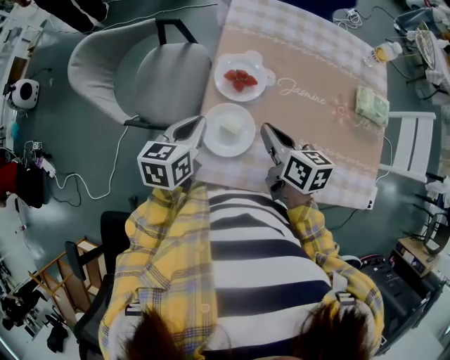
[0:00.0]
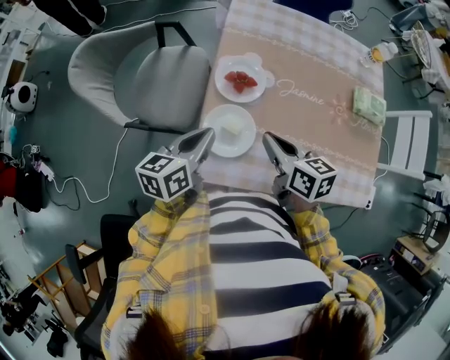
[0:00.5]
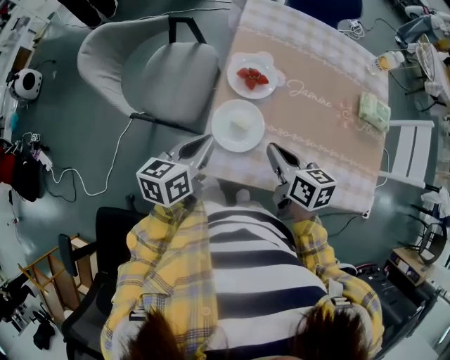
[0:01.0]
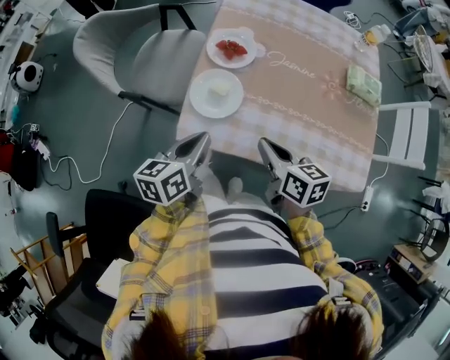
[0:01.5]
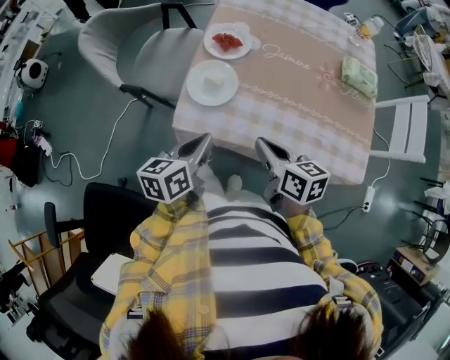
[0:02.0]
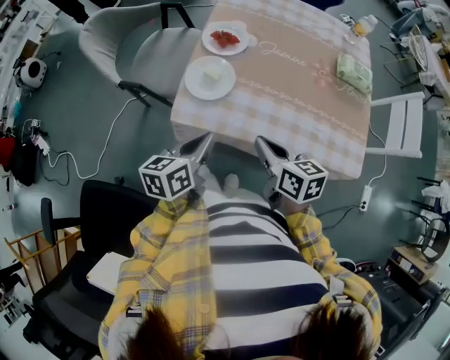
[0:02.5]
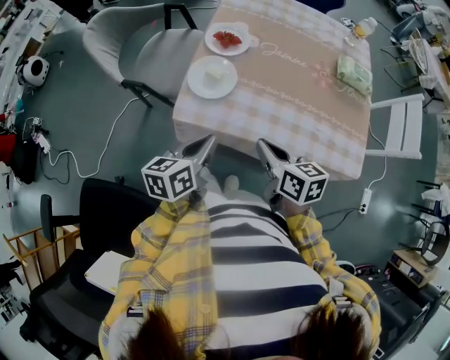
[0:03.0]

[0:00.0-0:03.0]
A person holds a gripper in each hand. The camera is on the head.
0:00.0 to 0:01.5: Both grippers travel together backward, about 15 cm.
0:01.5 to 0:03.0: Both grippers move backward, approximately 5 cm.

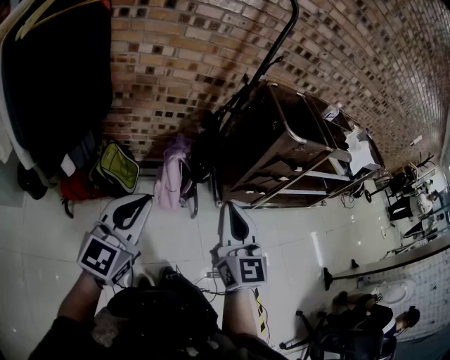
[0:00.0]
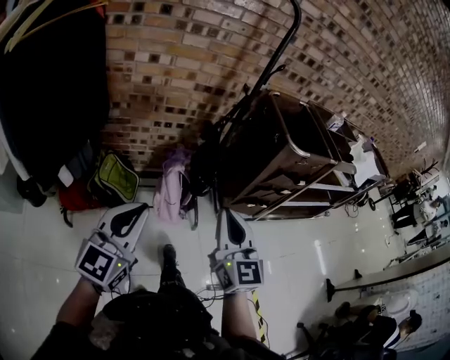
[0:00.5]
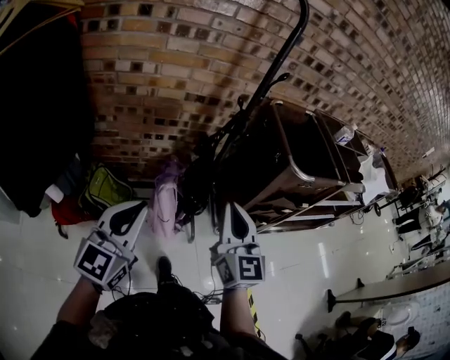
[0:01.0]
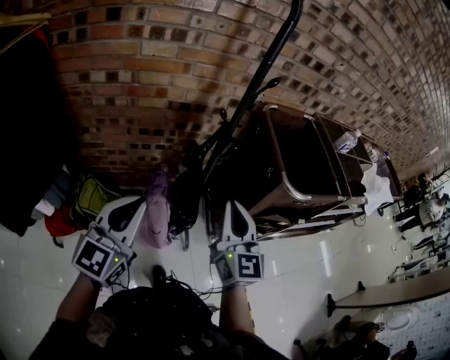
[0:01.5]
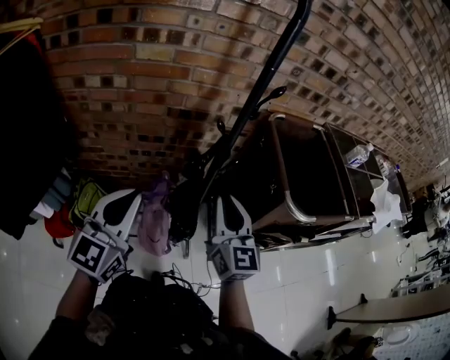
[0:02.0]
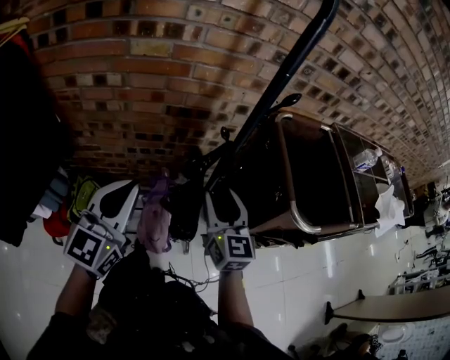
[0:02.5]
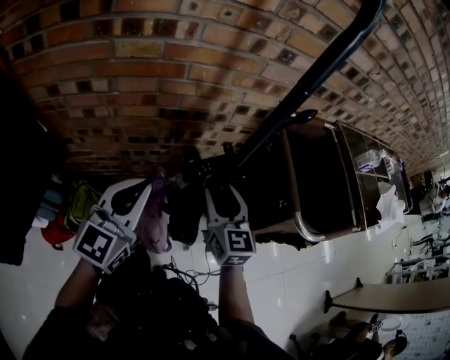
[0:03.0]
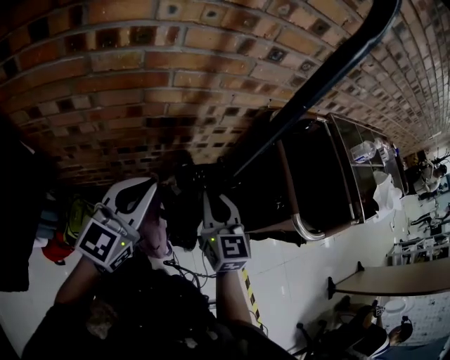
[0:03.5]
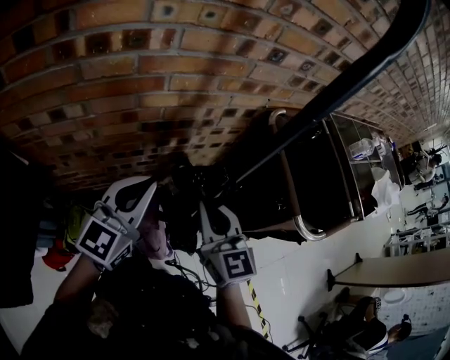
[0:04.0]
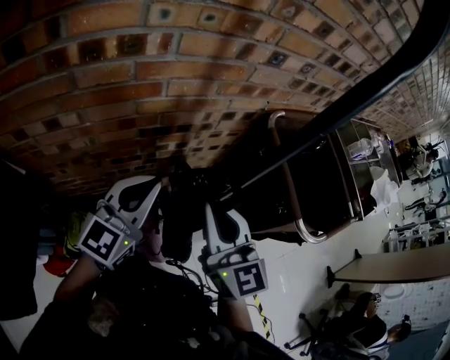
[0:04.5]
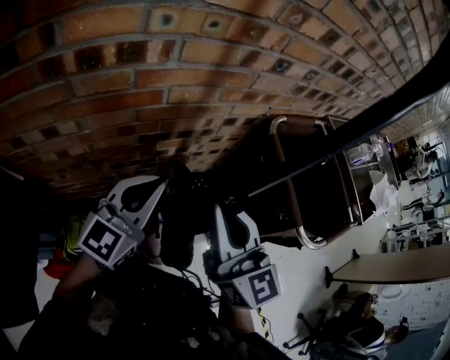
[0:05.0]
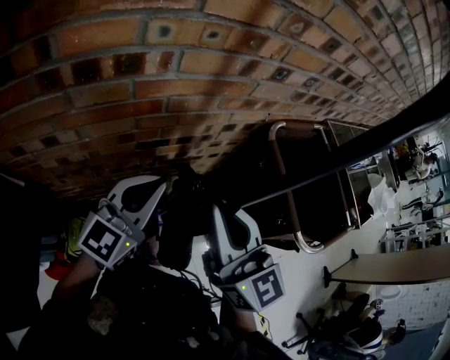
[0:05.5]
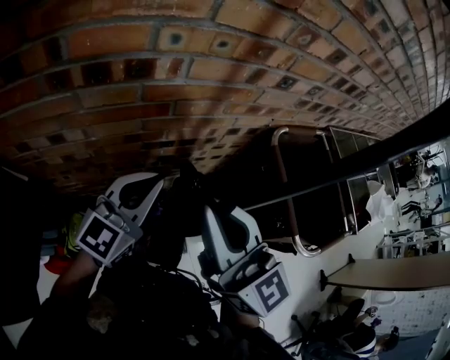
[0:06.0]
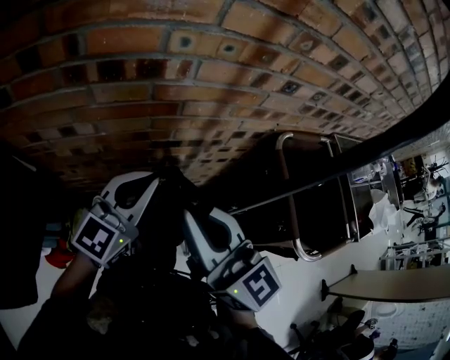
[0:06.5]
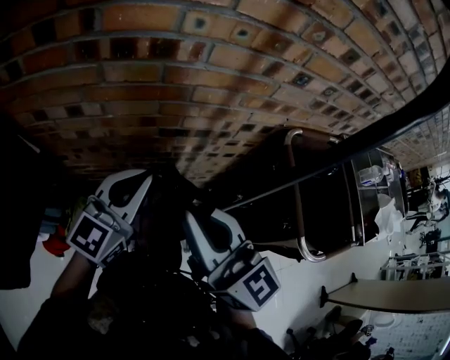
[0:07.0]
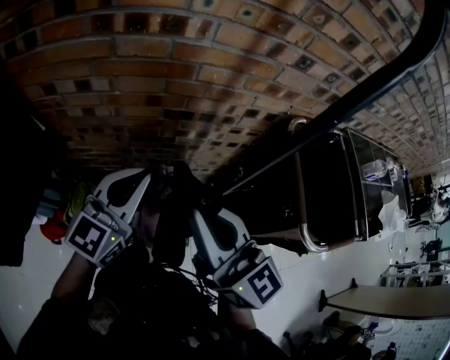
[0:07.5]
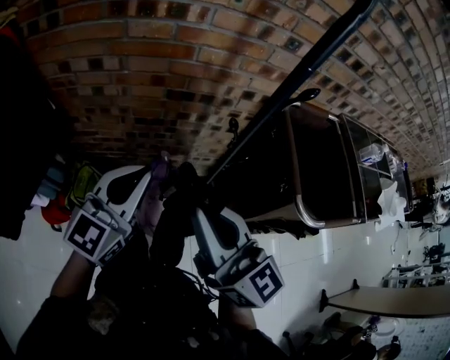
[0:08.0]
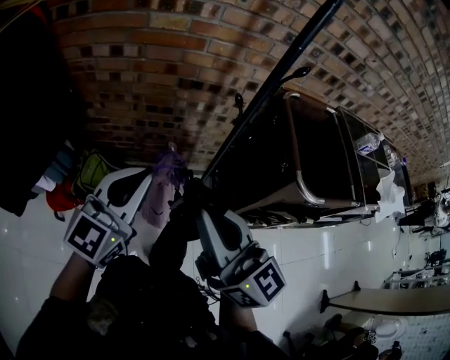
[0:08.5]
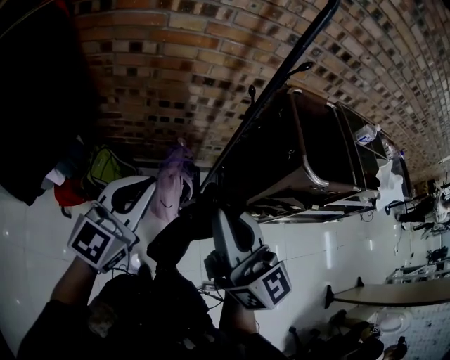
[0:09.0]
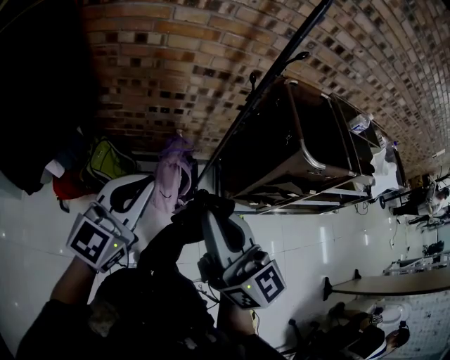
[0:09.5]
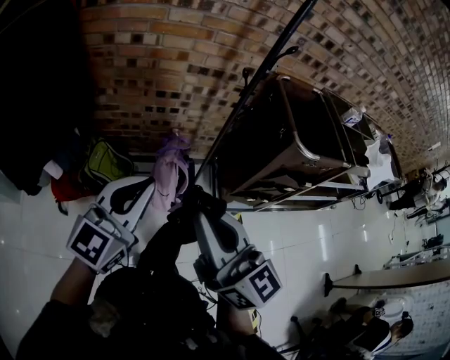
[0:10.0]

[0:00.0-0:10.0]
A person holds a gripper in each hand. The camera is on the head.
0:00.0 to 0:02.0: The pair of grippers is taken forward, about 40 cm.
0:02.0 to 0:04.0: The left gripper travels forward by approximately 20 cm. Meanwhile the right gripper heads forward and to the left, covering approximately 15 cm, and opens, then closes again.
0:04.0 to 0:06.0: The right gripper moves upward, roughly 20 cm, and swivels roughly 20 degrees. Meanwhile the left gripper is displaced forward by about 5 cm.
0:06.0 to 0:08.0: Both grippers move backward, roughly 20 cm.
0:08.0 to 0:10.0: Both grippers travel together backward, some 25 cm.

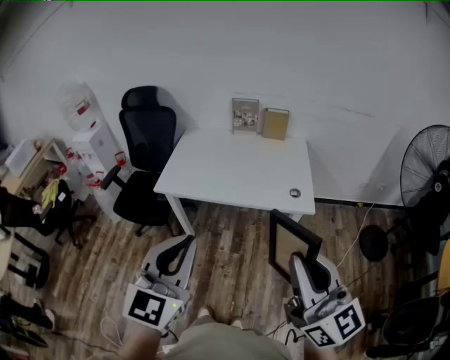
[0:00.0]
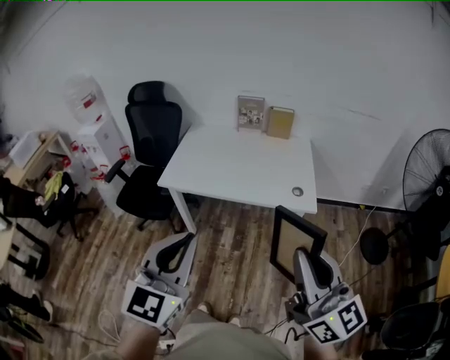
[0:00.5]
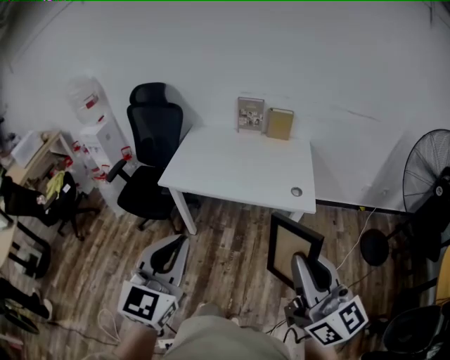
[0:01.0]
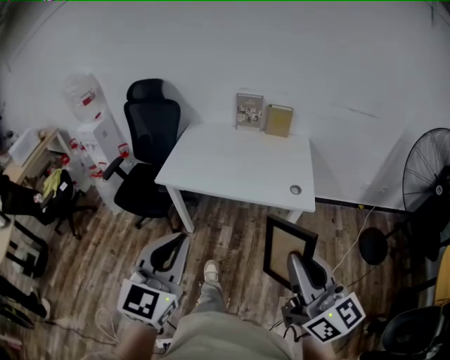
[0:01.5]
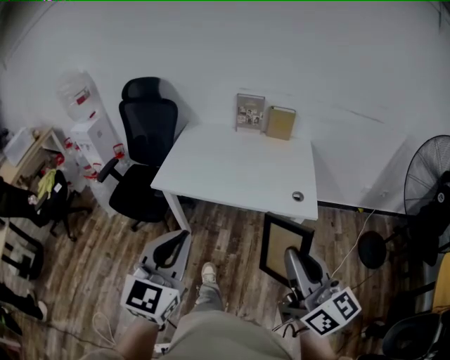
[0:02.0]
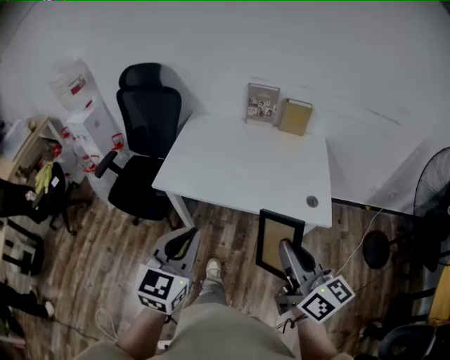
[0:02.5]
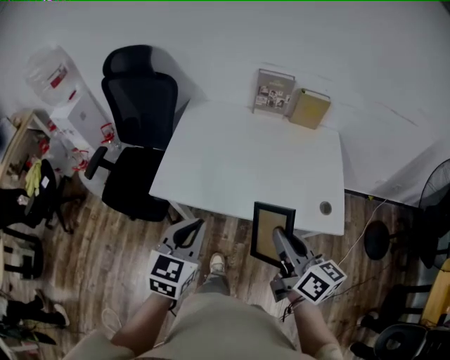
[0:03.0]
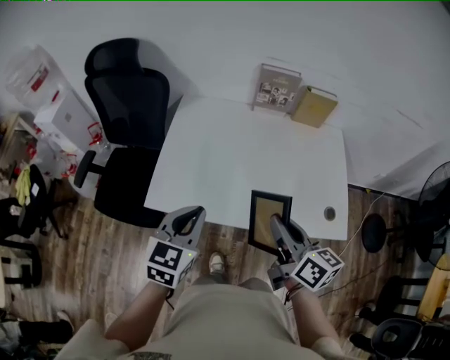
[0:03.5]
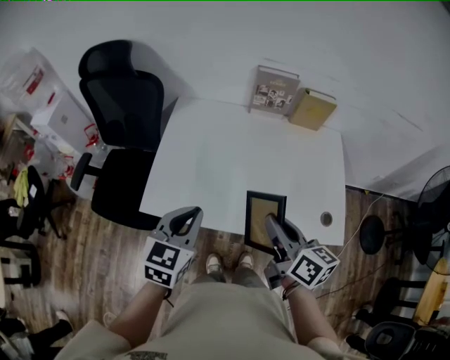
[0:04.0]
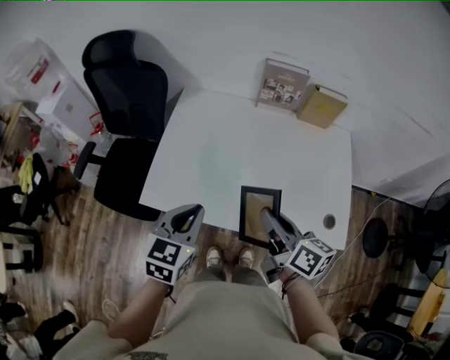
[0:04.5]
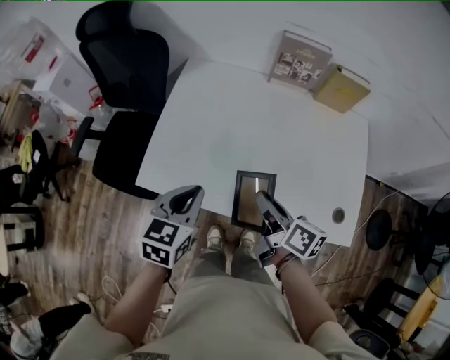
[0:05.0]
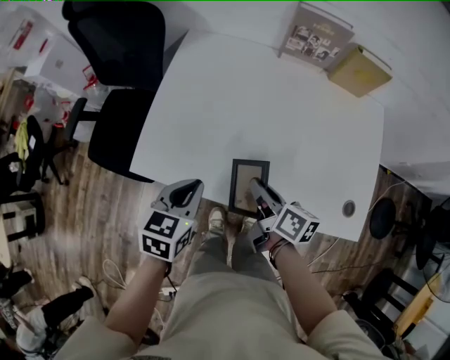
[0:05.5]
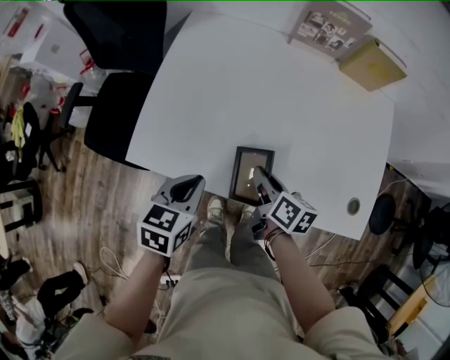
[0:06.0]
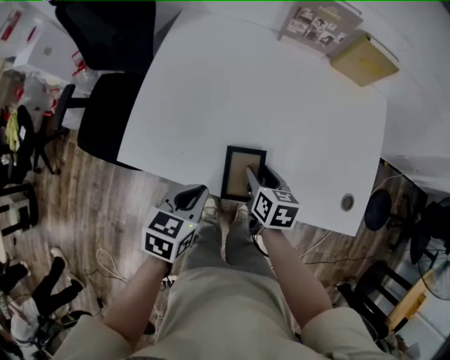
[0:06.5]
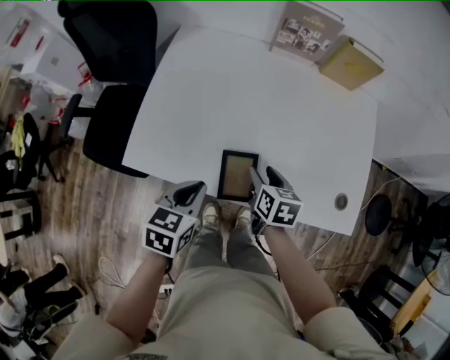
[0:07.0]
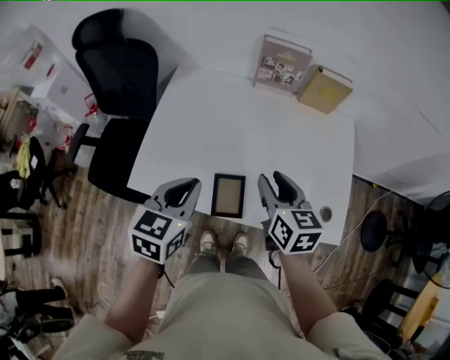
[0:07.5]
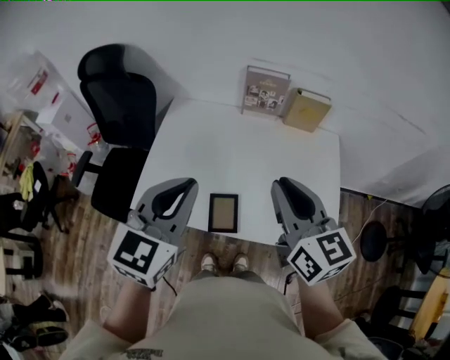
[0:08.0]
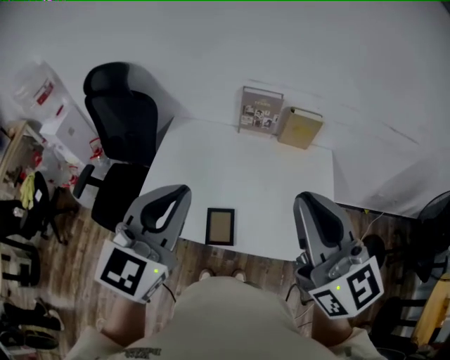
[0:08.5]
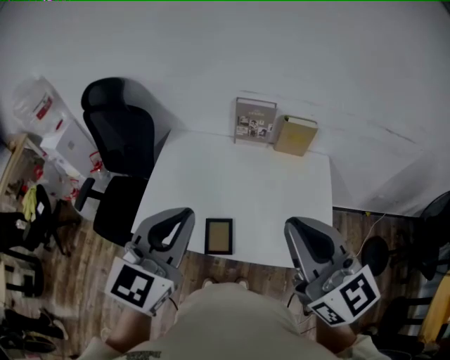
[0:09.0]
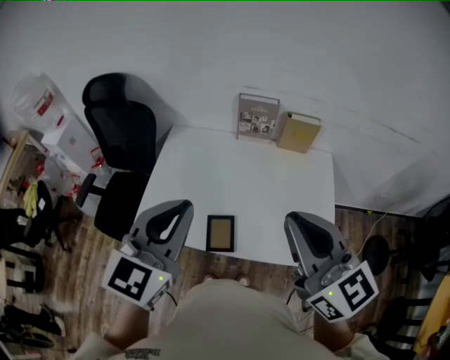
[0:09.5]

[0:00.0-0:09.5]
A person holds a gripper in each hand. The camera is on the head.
0:00.0 to 0:02.0: The left gripper travels forward by approximately 5 cm, while the right gripper heads forward and downward, covering approximately 10 cm.
0:02.0 to 0:04.0: Both grippers are carried forward, some 40 cm. The left gripper swivels some 30 degrees; the right gripper swivels some 30 degrees.
0:04.0 to 0:05.5: Both grippers move downward, roughly 15 cm. The right gripper changes its angle by some 20 degrees.
0:05.5 to 0:07.5: The right gripper moves upward and to the right, roughly 15 cm, changes its angle by roughly 40 degrees, and opens up, while the left gripper goes about 10 cm upward.
0:07.5 to 0:09.5: The left gripper shifts about 20 cm upward, and rotates roughly 30 degrees. The right gripper is displaced upward and backward by about 30 cm, turns by some 30 degrees, and closes up.

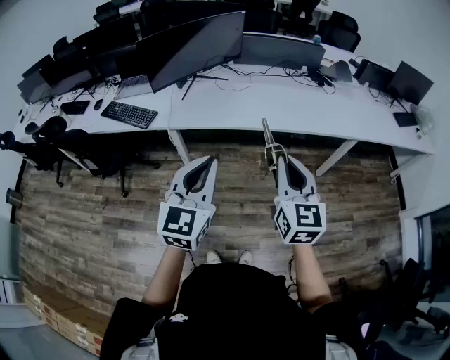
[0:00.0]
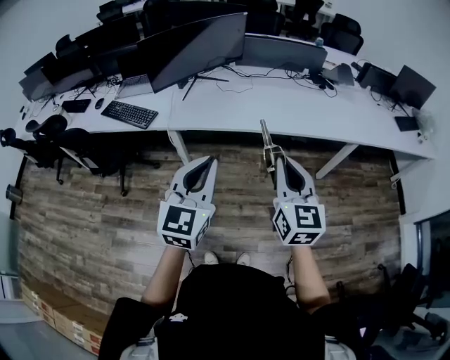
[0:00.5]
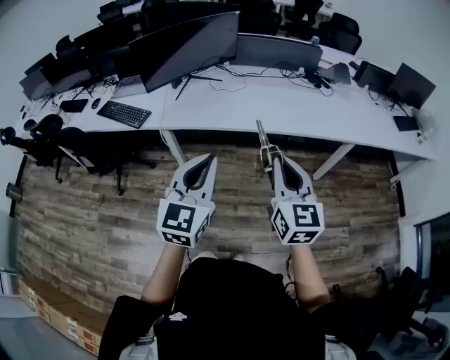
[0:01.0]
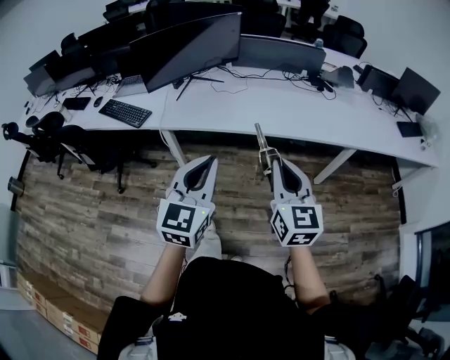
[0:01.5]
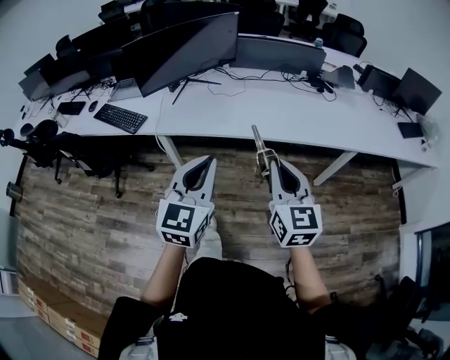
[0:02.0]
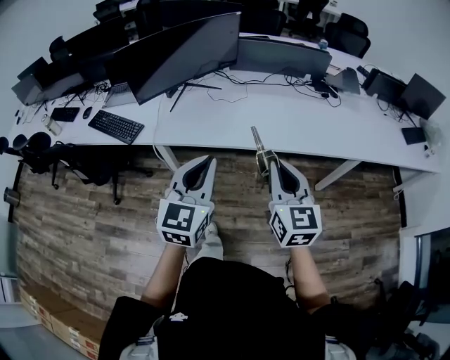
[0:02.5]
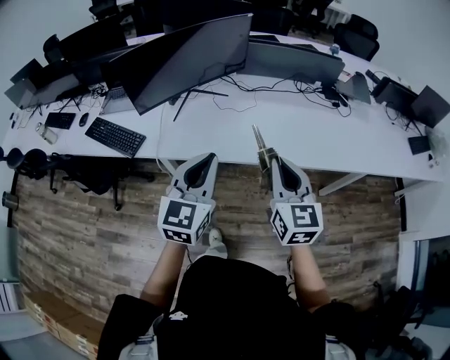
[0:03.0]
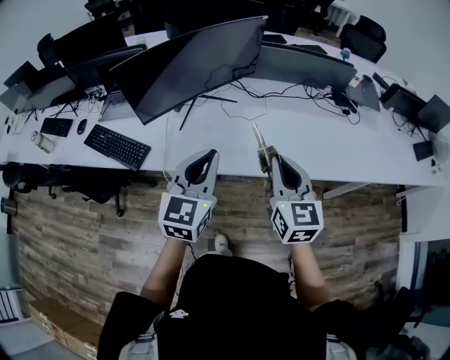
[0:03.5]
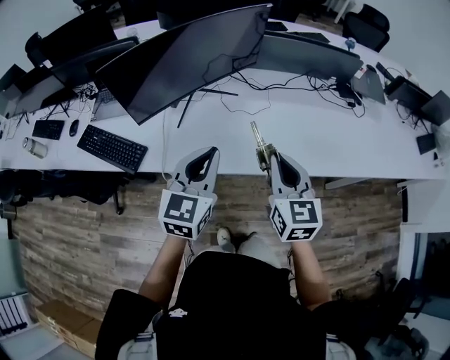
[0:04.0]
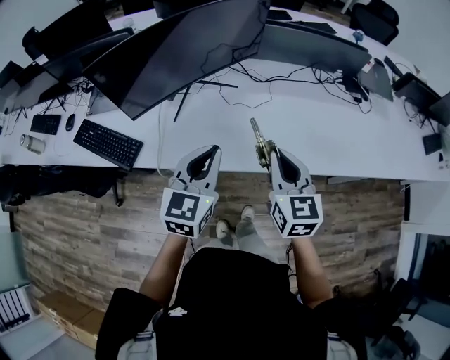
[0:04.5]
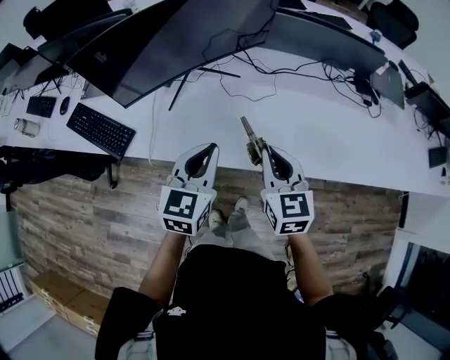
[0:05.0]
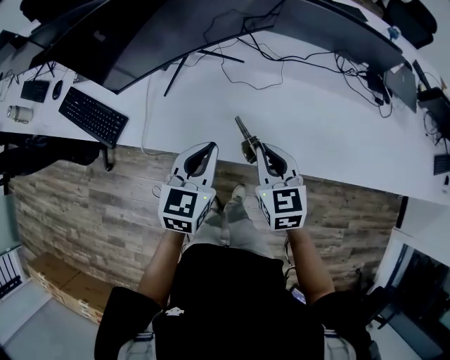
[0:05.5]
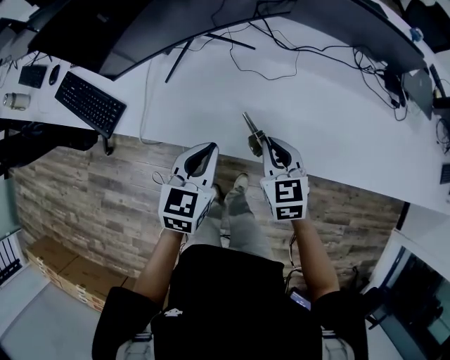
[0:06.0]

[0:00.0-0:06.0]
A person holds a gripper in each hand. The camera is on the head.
0:00.0 to 0:02.0: The left gripper goes about 10 cm to the right and forward, while the right gripper is displaced forward and to the right by roughly 10 cm.
0:02.0 to 0:04.0: Both grippers travel together forward and to the left, roughly 35 cm.
0:04.0 to 0:06.0: The right gripper is displaced downward and forward by some 25 cm, and turns by some 30 degrees; the left gripper shifts approximately 20 cm downward, and turns by roughly 20 degrees.
